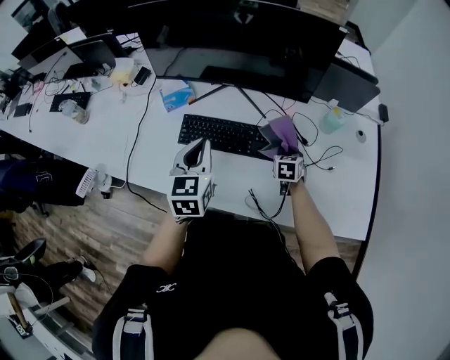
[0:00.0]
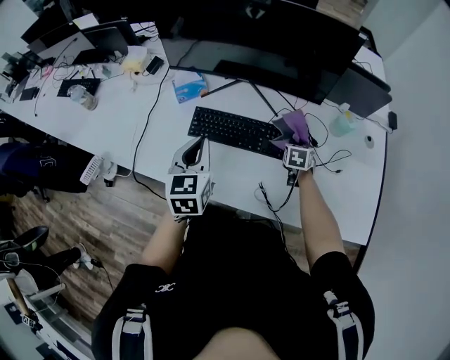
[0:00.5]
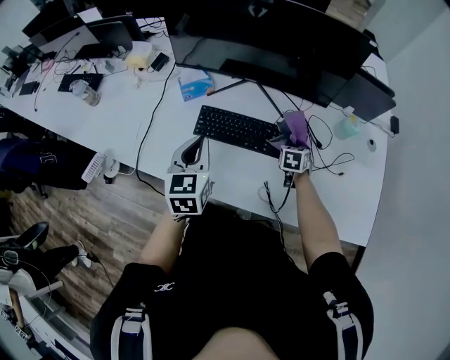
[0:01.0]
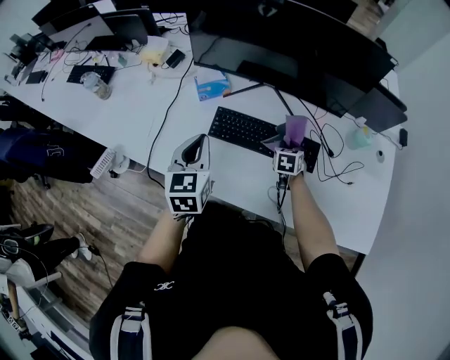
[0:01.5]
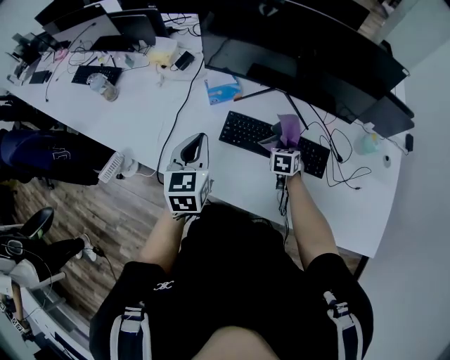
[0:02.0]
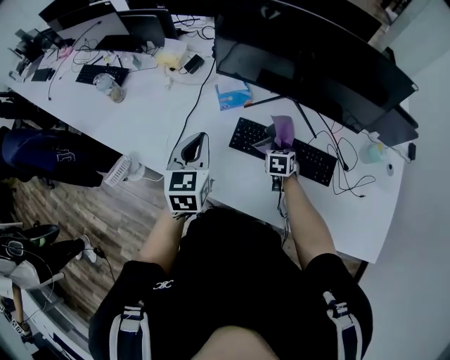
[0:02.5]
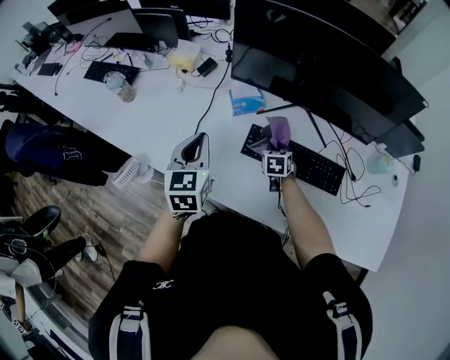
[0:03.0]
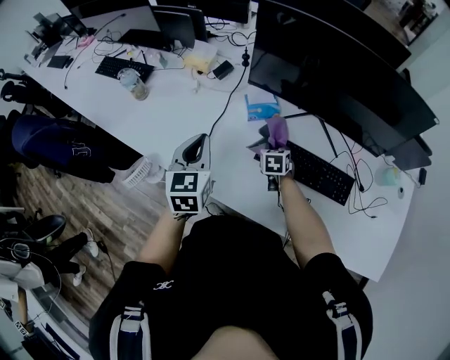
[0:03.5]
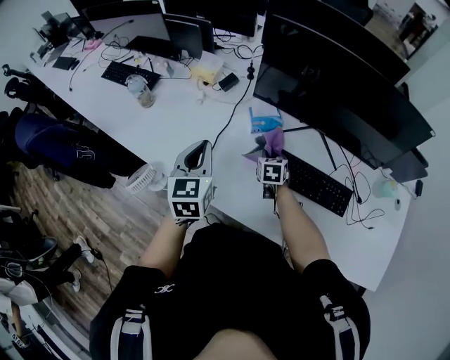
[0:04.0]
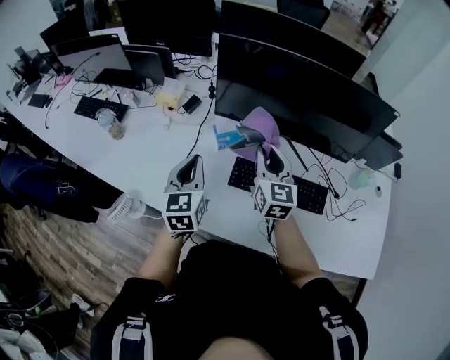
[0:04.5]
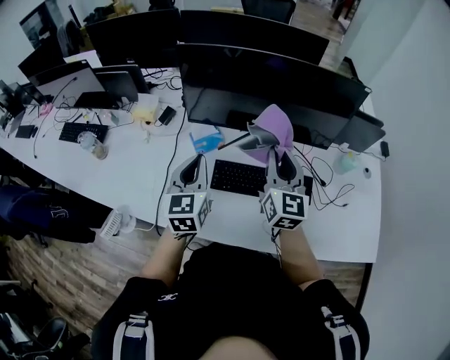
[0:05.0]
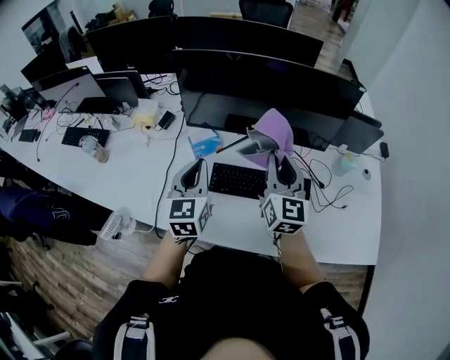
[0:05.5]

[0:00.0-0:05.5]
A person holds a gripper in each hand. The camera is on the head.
0:00.0 to 0:02.0: The two grippers go roughly 20 cm to the left.
0:02.0 to 0:03.5: Both grippers move to the left, about 20 cm.
0:03.5 to 0:05.5: The left gripper goes about 15 cm to the right. The right gripper travels upward and to the right by roughly 35 cm, and tilts its fingers approximately 50 degrees upward.

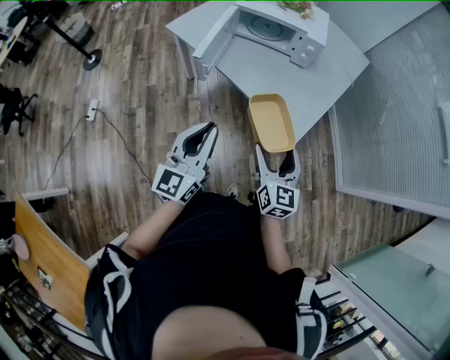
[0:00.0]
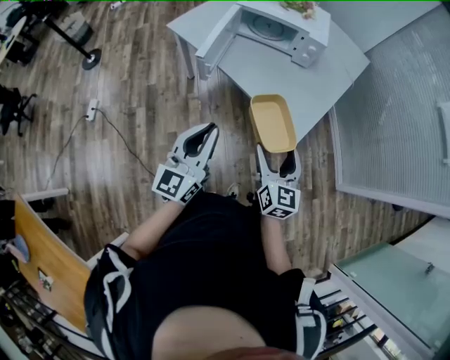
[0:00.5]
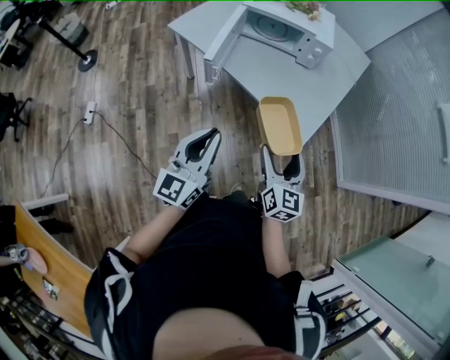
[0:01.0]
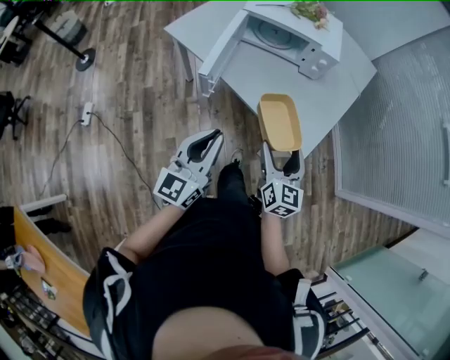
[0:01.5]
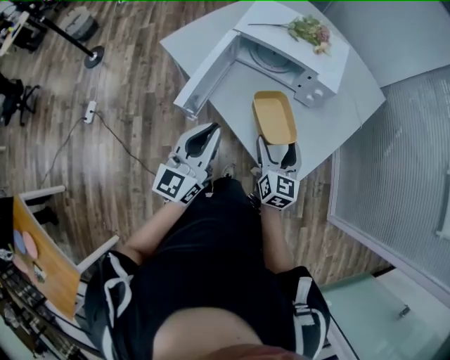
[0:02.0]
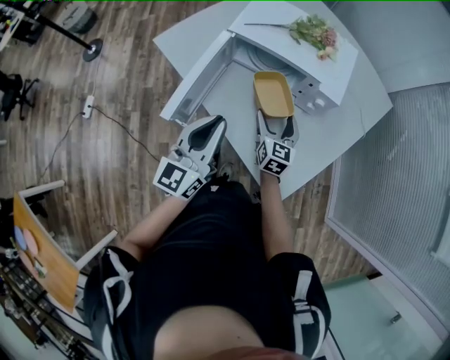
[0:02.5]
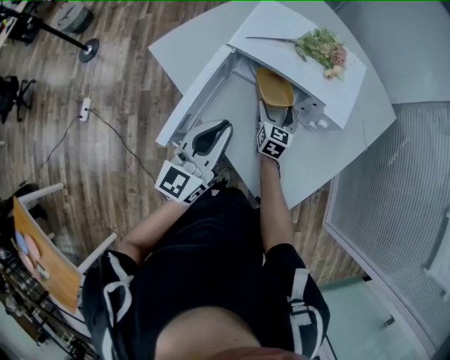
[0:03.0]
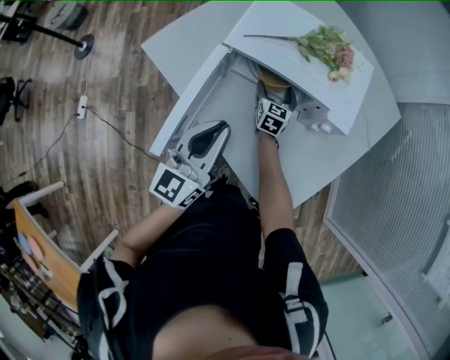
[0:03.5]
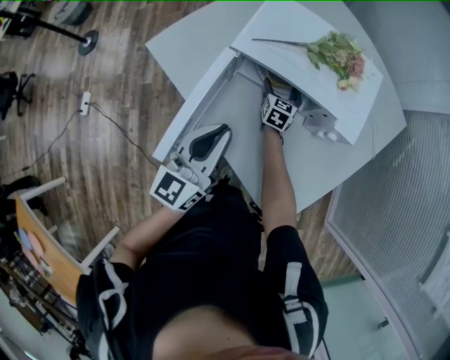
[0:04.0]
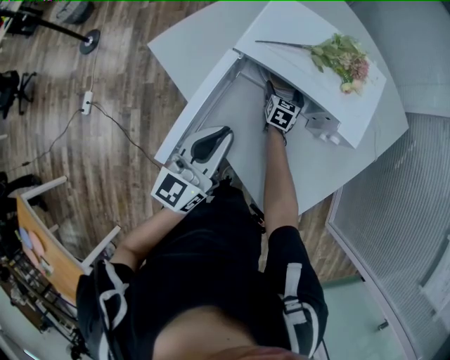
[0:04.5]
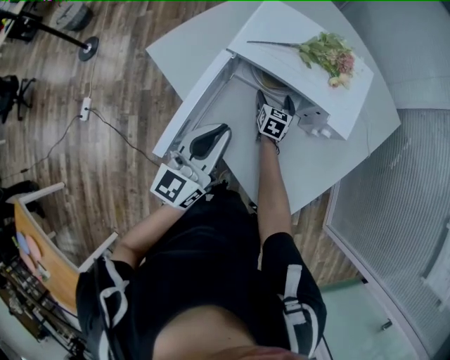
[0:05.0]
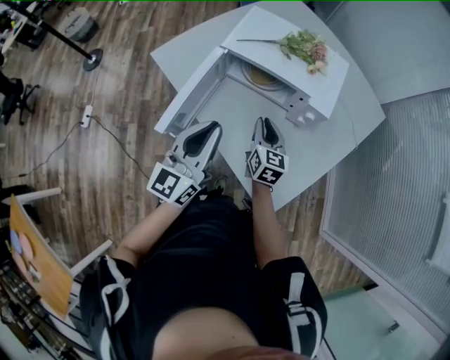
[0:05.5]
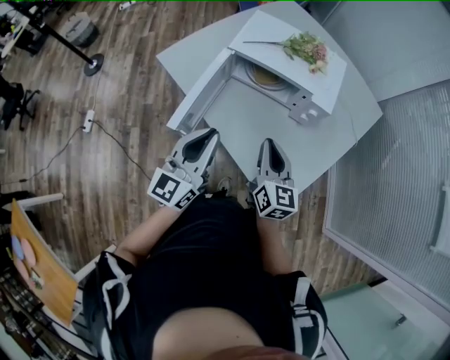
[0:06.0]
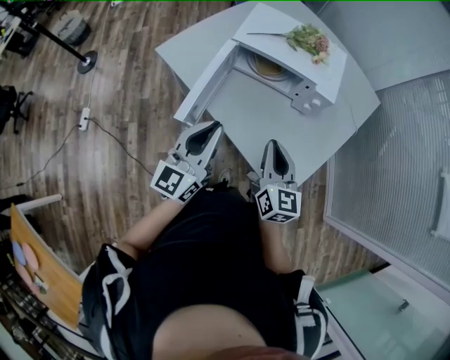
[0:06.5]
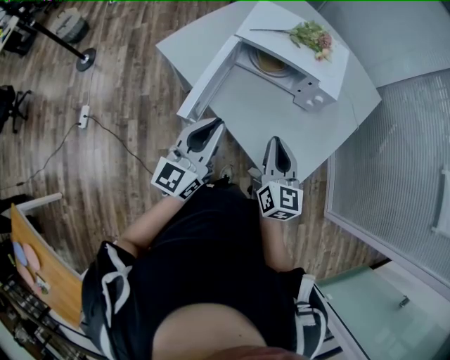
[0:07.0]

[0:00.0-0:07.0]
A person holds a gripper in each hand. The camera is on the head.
0:00.0 to 0:02.0: The two grippers go some 30 cm forward.
0:02.0 to 0:03.5: The right gripper is displaced forward and downward by about 40 cm; the left gripper shifts about 20 cm forward.
0:05.0 to 0:07.0: The left gripper moves backward and upward, about 20 cm; the right gripper goes some 50 cm backward and upward, changes its angle by some 20 degrees, and closes up.

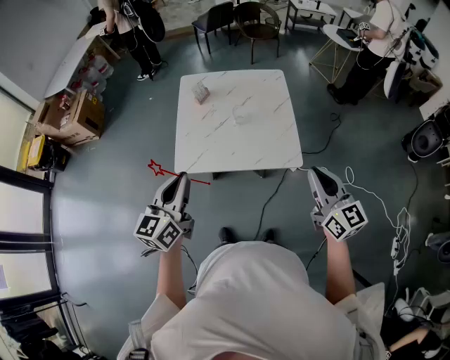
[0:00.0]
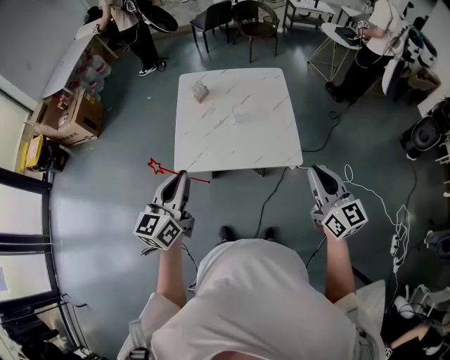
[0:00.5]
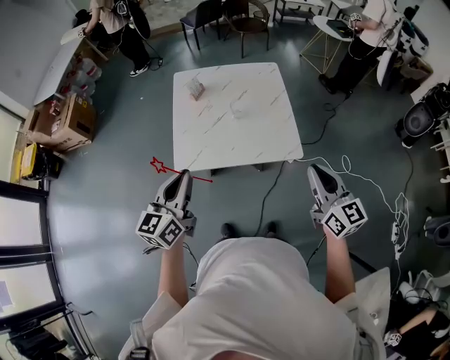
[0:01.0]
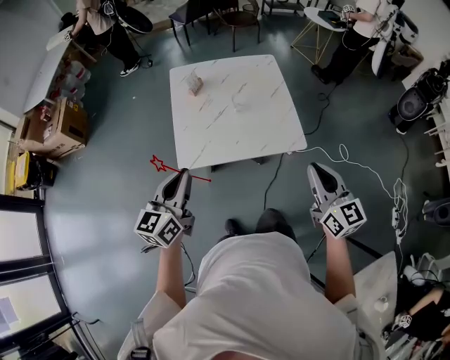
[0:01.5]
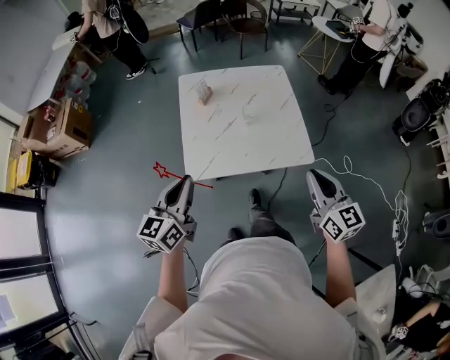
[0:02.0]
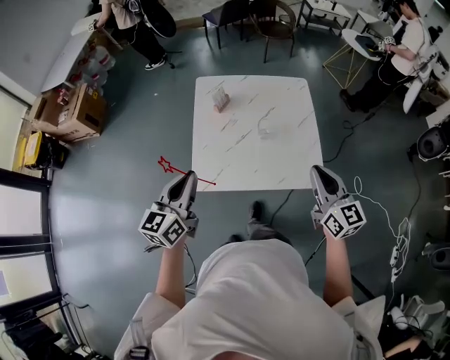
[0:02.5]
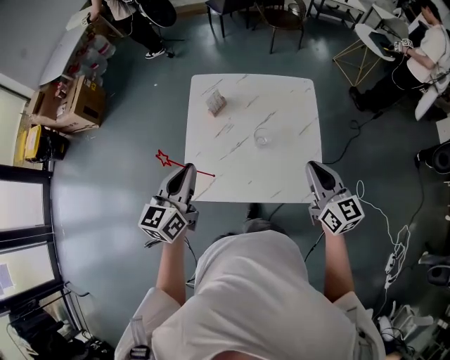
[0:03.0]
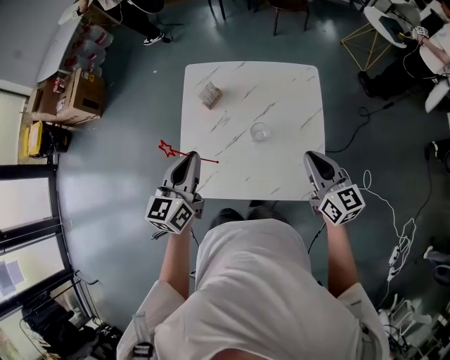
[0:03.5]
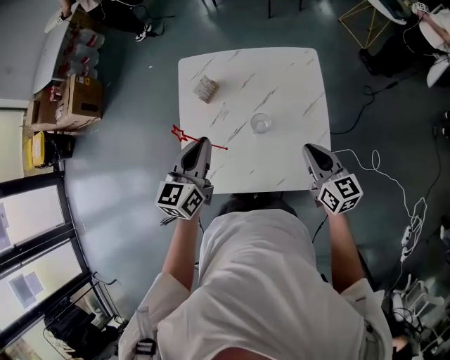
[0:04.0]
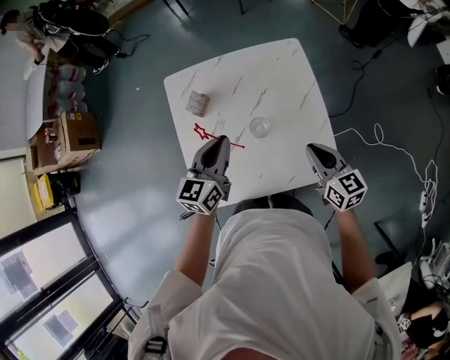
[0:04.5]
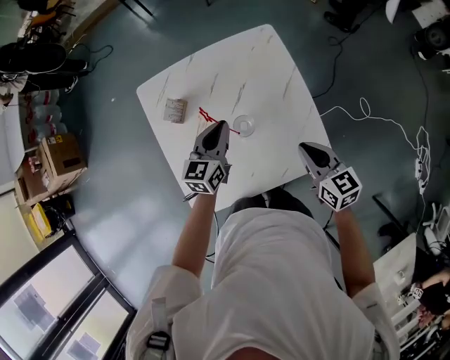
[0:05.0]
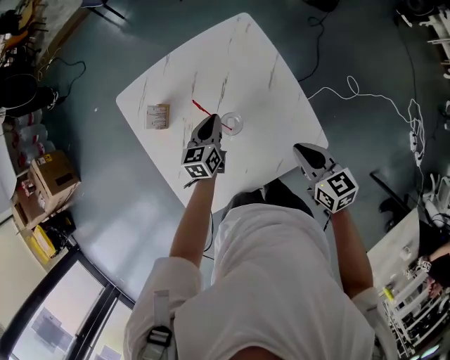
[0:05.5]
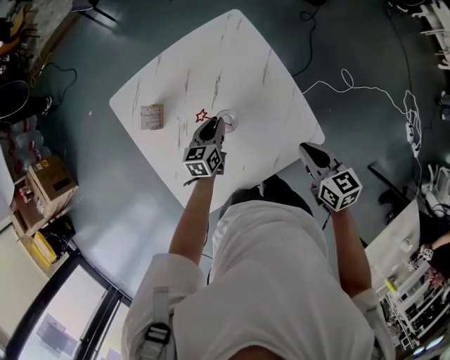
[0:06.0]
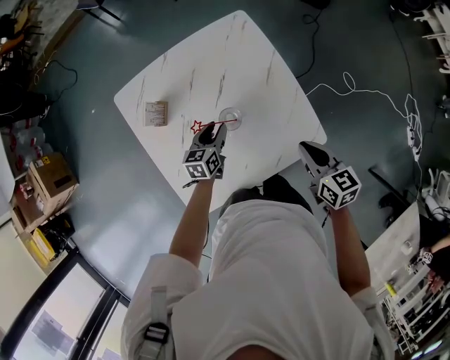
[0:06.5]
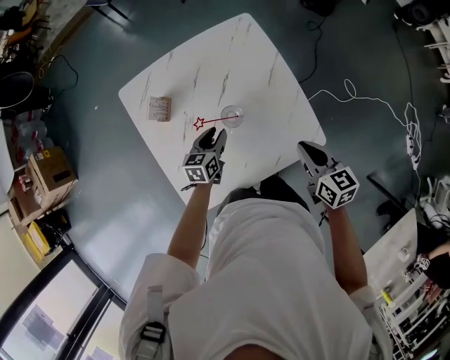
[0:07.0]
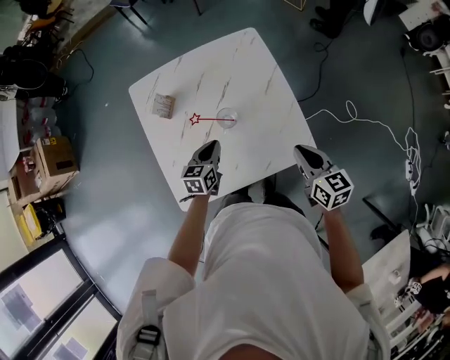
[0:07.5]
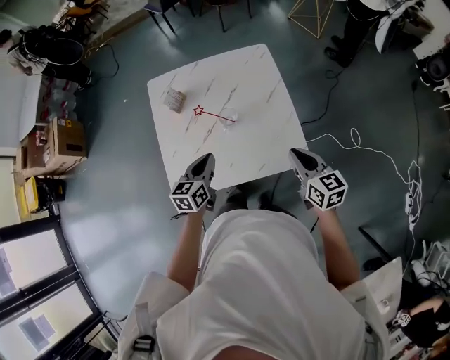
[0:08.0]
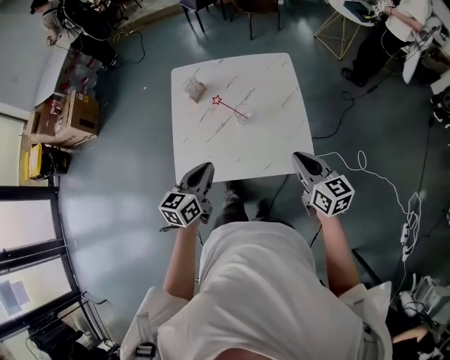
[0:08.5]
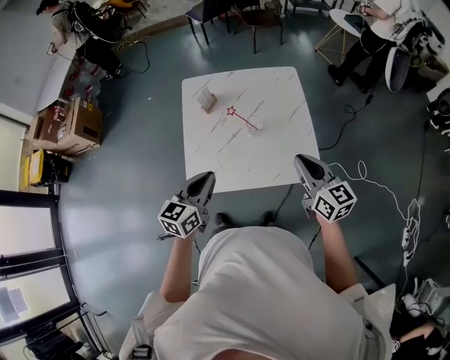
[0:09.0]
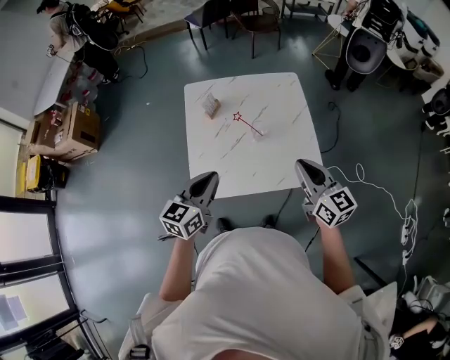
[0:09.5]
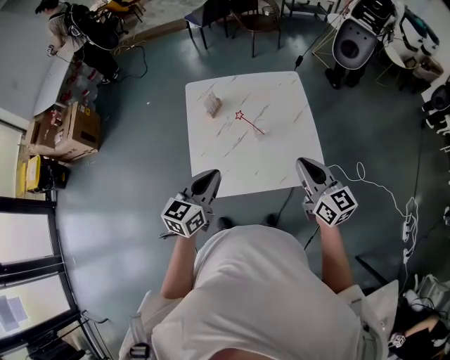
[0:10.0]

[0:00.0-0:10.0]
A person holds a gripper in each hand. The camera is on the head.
0:00.0 to 0:02.0: Both grippers travel together to the left, about 10 cm.
0:02.0 to 0:04.0: The left gripper travels forward and to the right by some 35 cm. The right gripper is displaced forward and downward by approximately 35 cm.
0:04.0 to 0:06.0: The left gripper is displaced downward by roughly 25 cm, and swivels approximately 30 degrees, while the right gripper travels downward by approximately 5 cm, and swivels approximately 30 degrees.
0:06.0 to 0:08.0: The left gripper heads backward and upward, covering some 25 cm. Meanwhile the right gripper moves backward and upward, roughly 10 cm.
0:08.0 to 0:10.0: The right gripper shifts roughly 15 cm to the left and upward, while the left gripper moves upward, to the left and backward, about 20 cm.

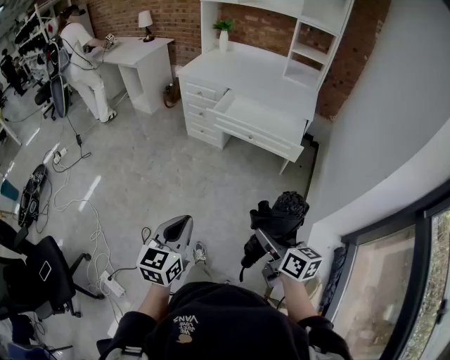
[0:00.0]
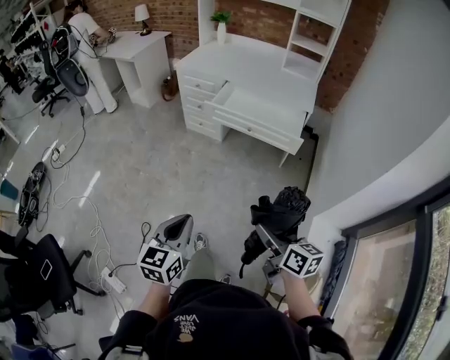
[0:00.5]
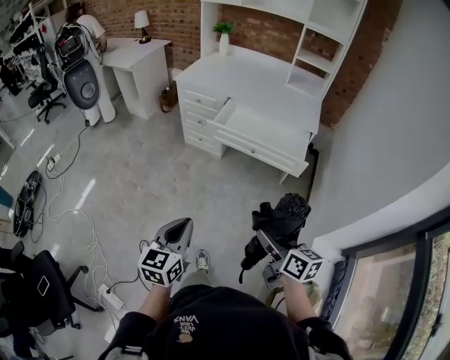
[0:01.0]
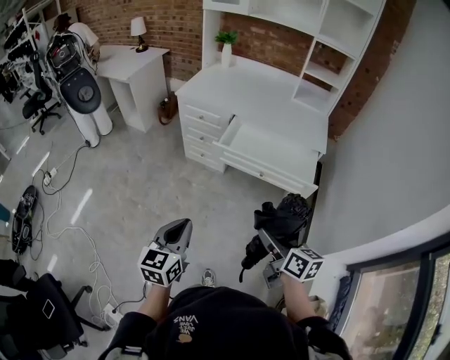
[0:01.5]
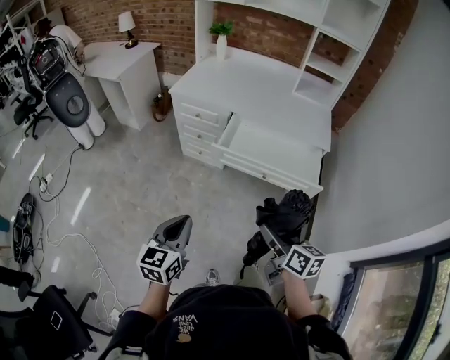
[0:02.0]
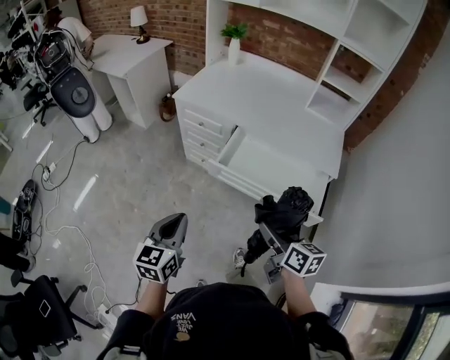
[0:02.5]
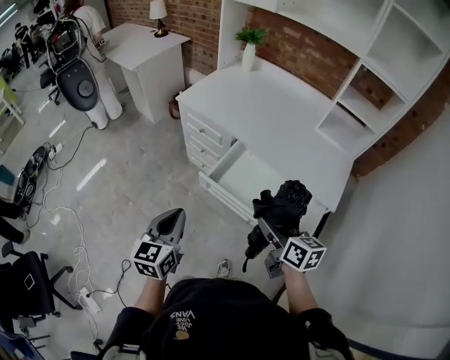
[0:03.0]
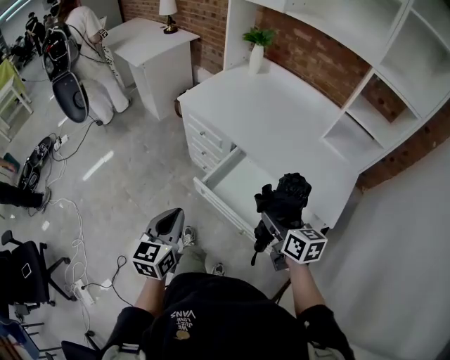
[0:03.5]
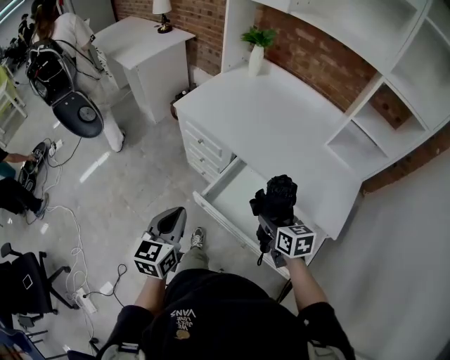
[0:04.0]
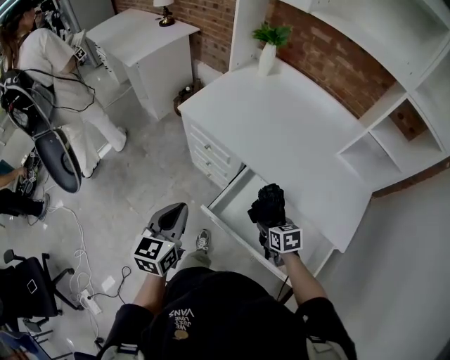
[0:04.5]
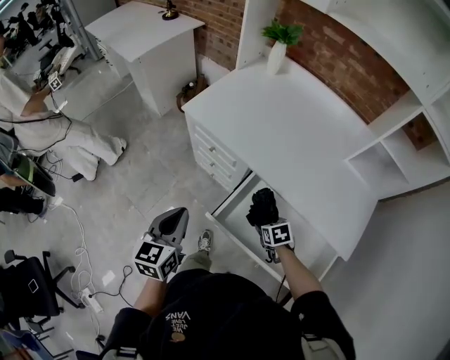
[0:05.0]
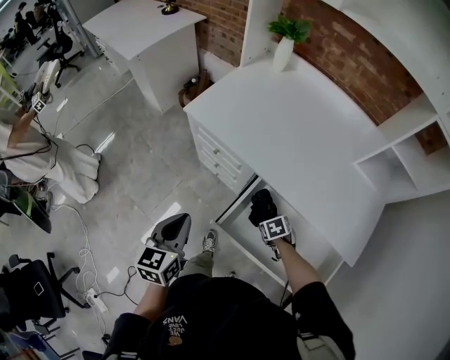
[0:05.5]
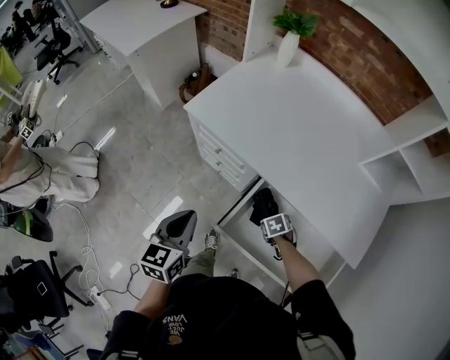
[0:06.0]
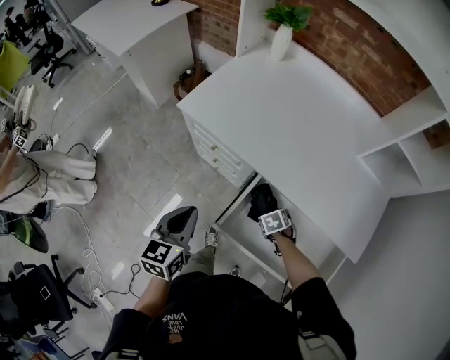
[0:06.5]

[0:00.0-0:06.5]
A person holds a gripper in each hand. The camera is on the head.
0:00.0 to 0:02.0: The grippers both shift forward by some 30 cm.
0:02.0 to 0:04.5: Both grippers are carried forward, about 40 cm. The right gripper moves downward, about 20 cm, and angles its fingers downward, by approximately 30 degrees; the left gripper rotates about 20 degrees.
0:04.5 to 0:06.5: The right gripper heads downward, covering about 15 cm, and turns by some 30 degrees; the left gripper ends up roughly 10 cm from where it was.
